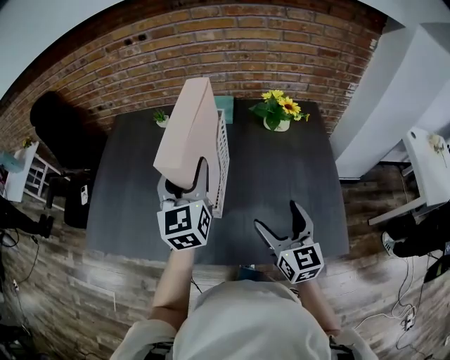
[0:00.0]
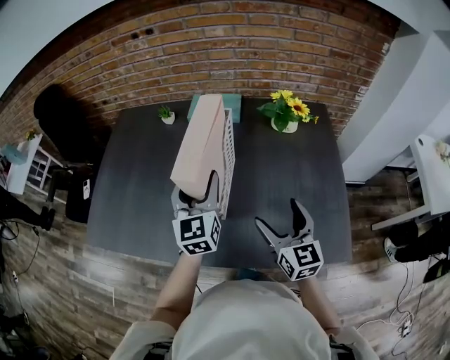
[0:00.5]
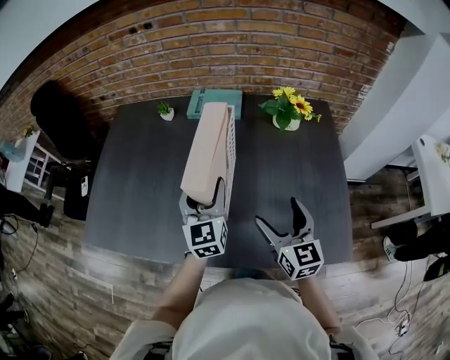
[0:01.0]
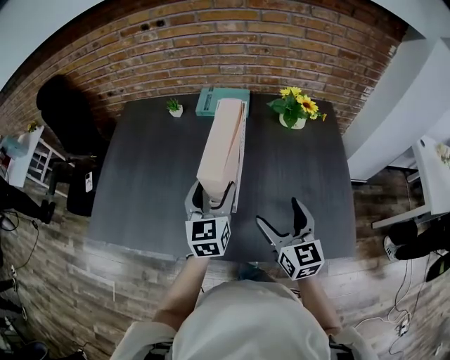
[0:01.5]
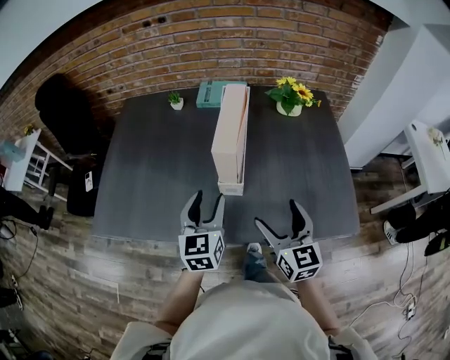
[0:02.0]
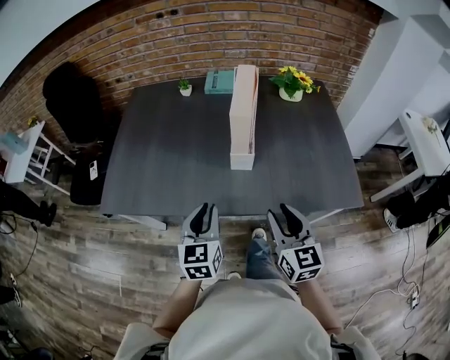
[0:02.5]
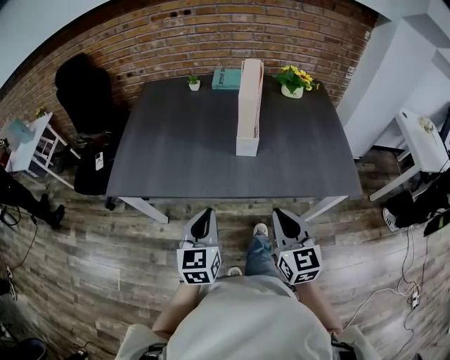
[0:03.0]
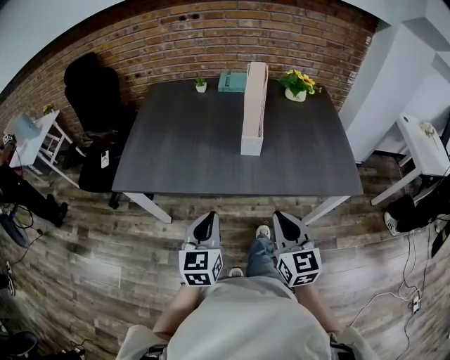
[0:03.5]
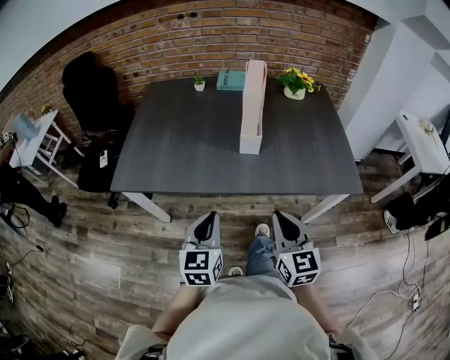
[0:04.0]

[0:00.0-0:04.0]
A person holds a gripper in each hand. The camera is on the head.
0:00.0 to 0:02.0: The right gripper heads to the left and backward, covering roughly 10 cm. The left gripper goes approximately 15 cm downward, backward and to the left.
0:02.0 to 0:04.0: Both grippers travel together backward, roughly 25 cm. The right gripper closes its fingers, while the left gripper closes.

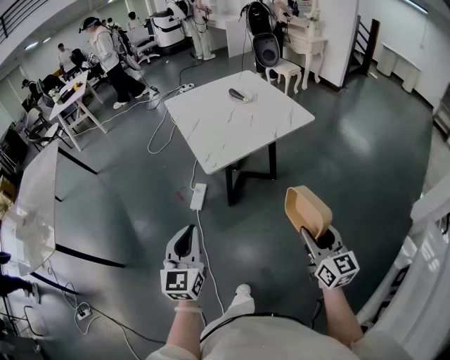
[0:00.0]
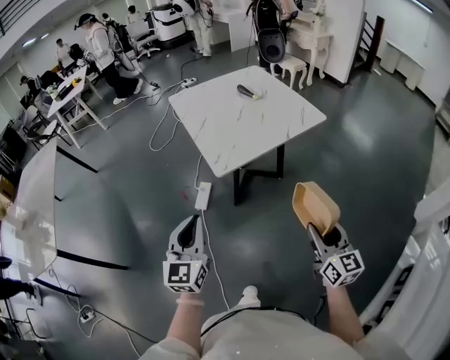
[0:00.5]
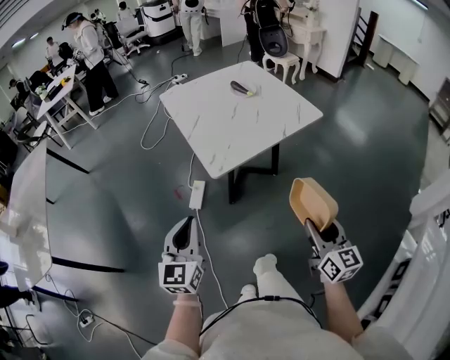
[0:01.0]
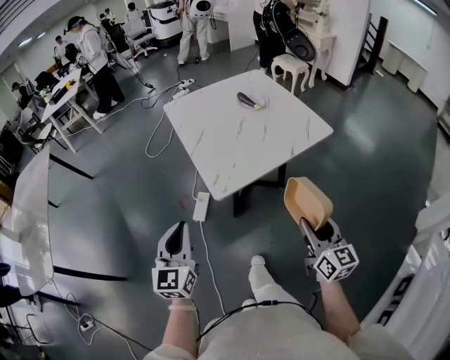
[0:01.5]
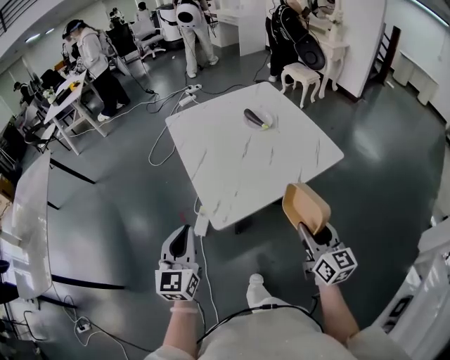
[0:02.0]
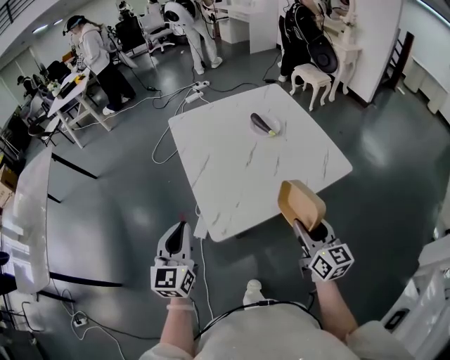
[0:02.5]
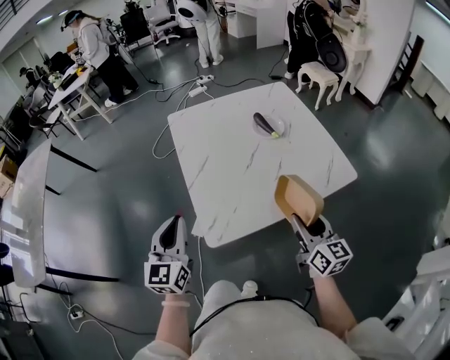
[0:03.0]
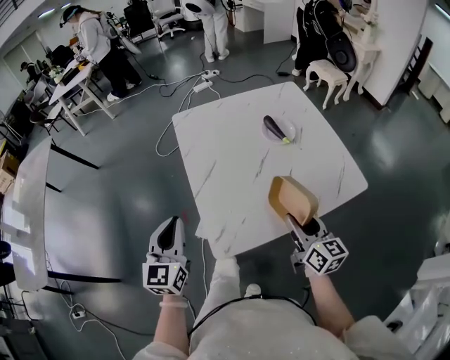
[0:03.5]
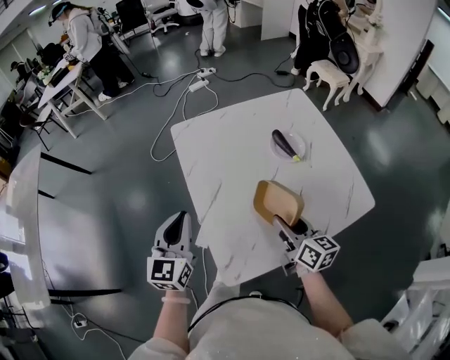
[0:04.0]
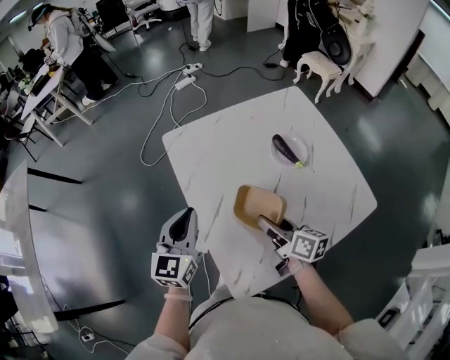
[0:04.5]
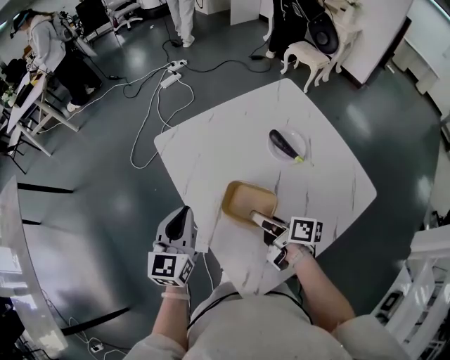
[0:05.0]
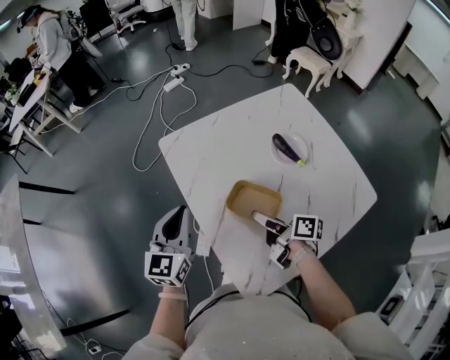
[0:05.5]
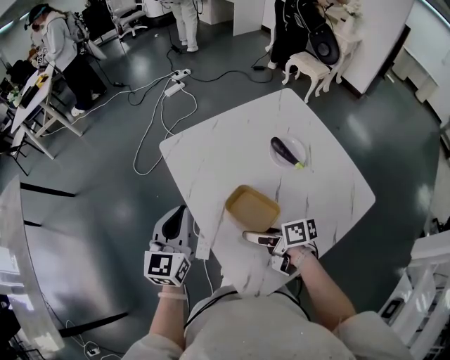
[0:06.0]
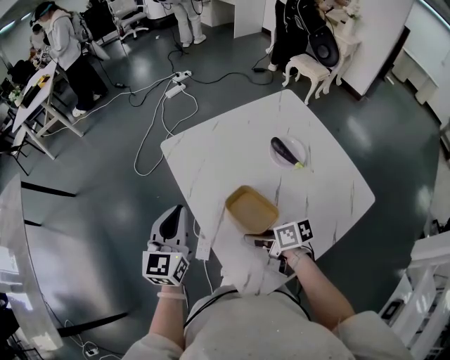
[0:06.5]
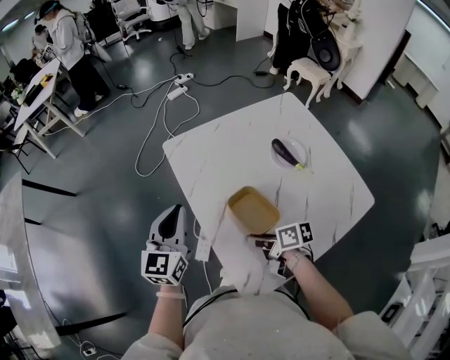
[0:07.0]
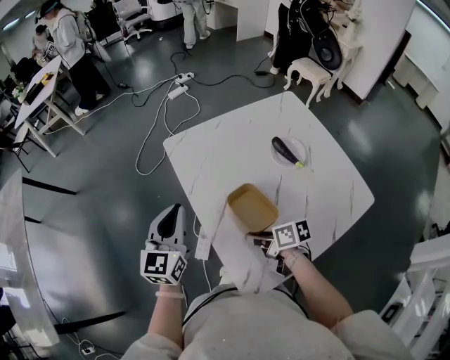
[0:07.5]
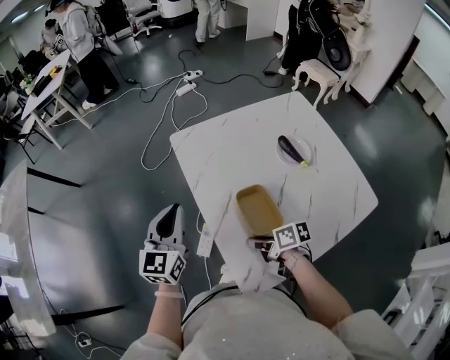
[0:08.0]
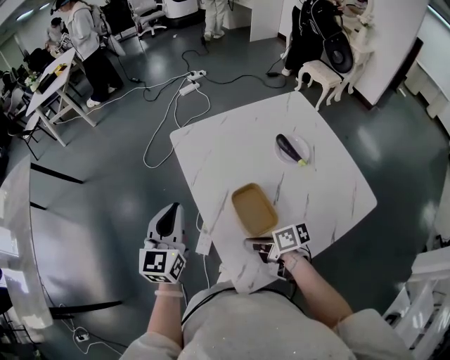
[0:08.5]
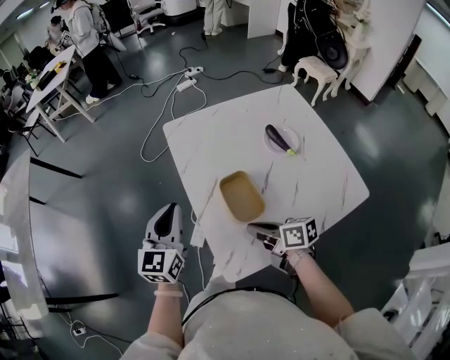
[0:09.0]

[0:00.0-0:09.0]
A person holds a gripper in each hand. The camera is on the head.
0:00.0 to 0:02.0: Both grippers move forward, roughly 25 cm.
0:02.0 to 0:04.5: The left gripper is displaced forward by about 30 cm; the right gripper moves forward and to the left, roughly 35 cm, and rotates approximately 40 degrees.
0:04.5 to 0:07.0: The right gripper moves downward and to the left, approximately 10 cm, rotates about 30 degrees, and opens, then closes once more.
0:07.0 to 0:09.0: The left gripper moves backward, about 10 cm; the right gripper shifts about 5 cm backward and upward.

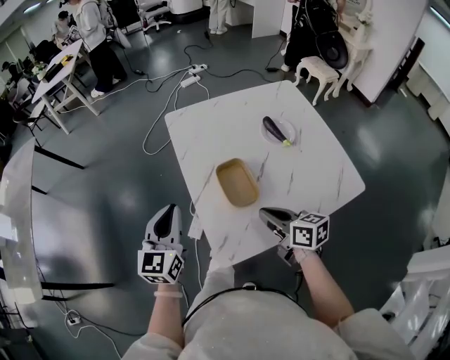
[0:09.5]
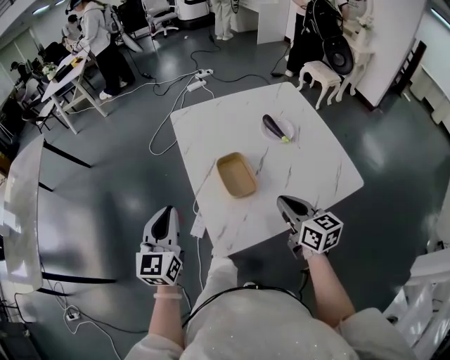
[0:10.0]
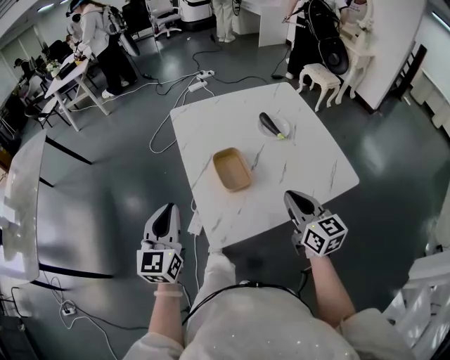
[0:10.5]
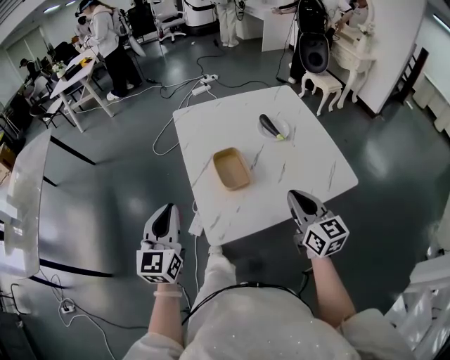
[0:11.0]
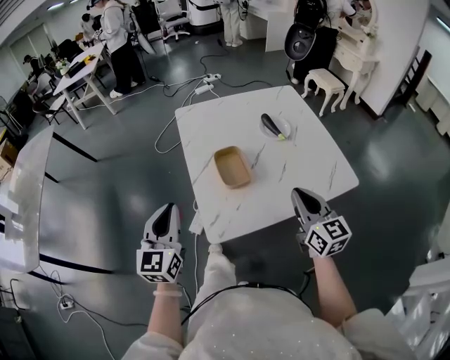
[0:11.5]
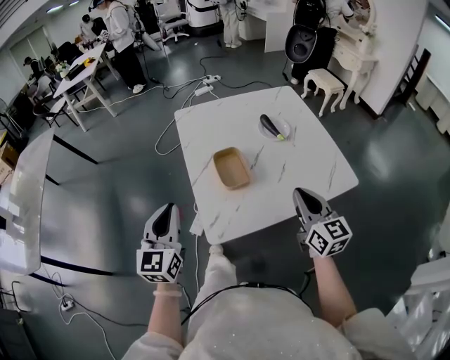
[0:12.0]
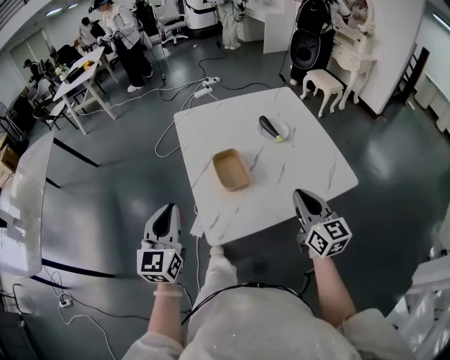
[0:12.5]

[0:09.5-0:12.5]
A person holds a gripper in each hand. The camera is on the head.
0:09.5 to 0:11.0: The right gripper travels to the right, upward and backward by some 15 cm, and rotates roughly 30 degrees, while the left gripper is displaced backward by some 10 cm.
0:11.0 to 0:12.5: The grippers move only a little.

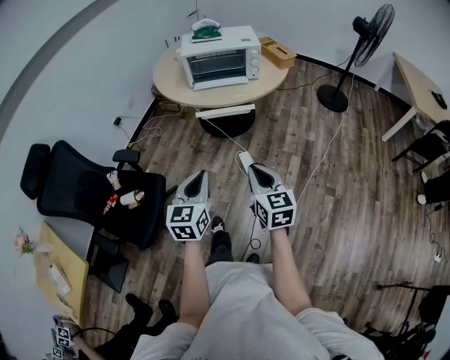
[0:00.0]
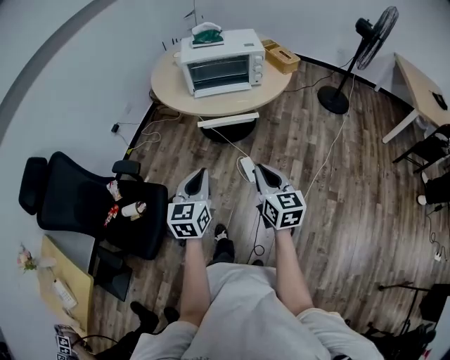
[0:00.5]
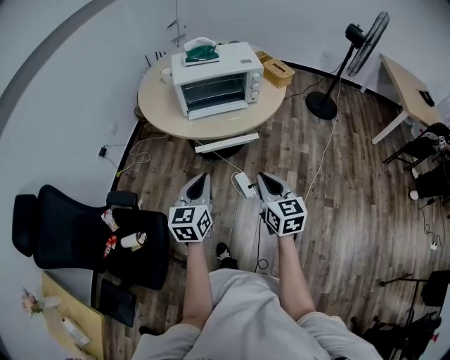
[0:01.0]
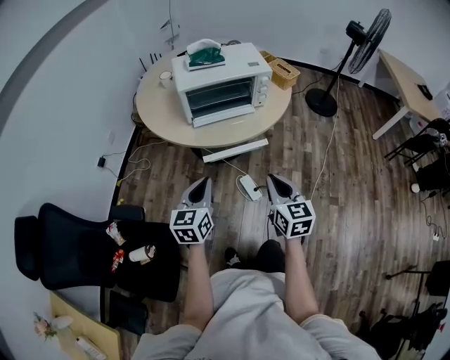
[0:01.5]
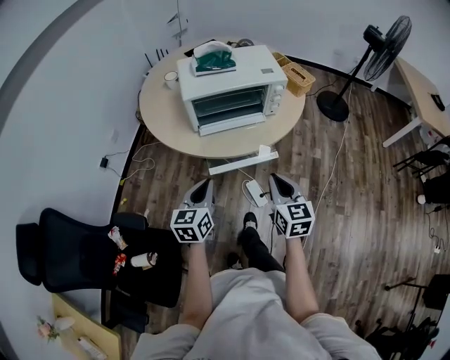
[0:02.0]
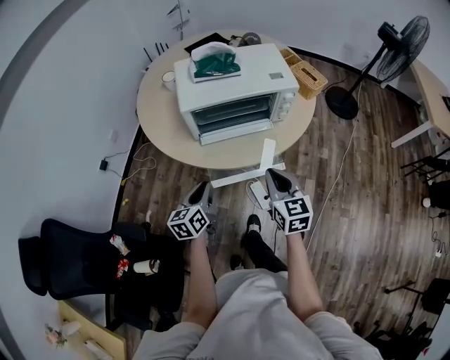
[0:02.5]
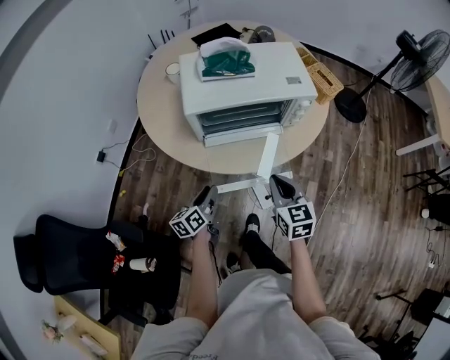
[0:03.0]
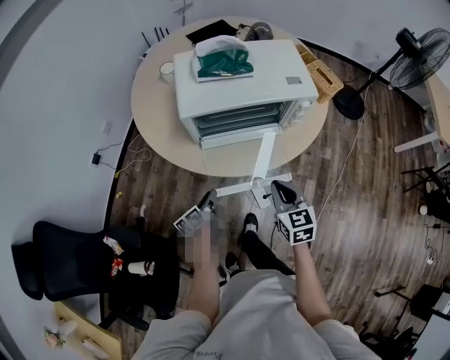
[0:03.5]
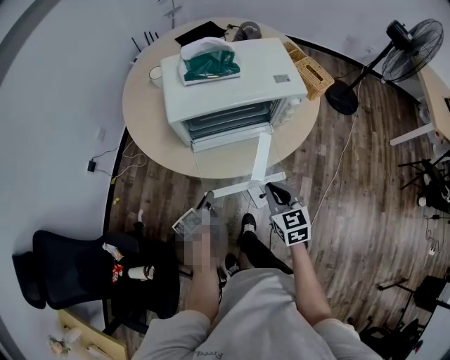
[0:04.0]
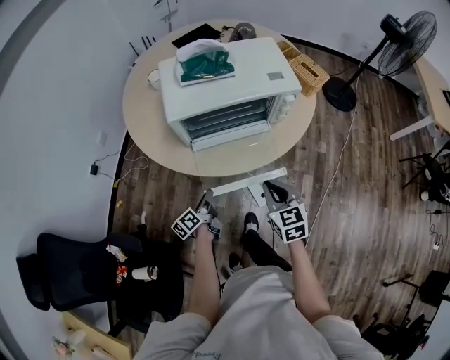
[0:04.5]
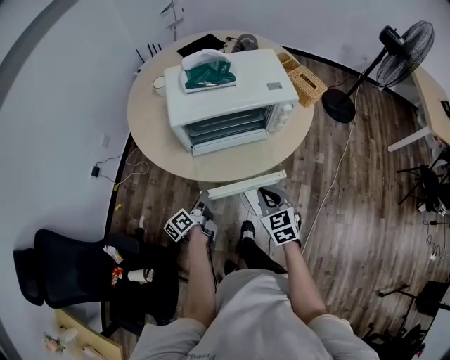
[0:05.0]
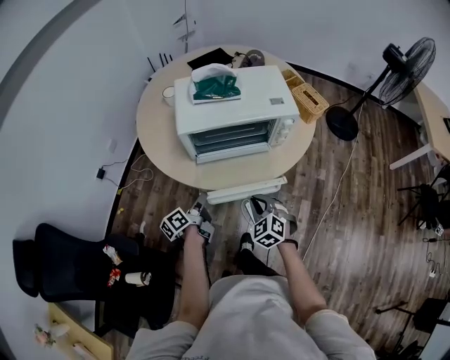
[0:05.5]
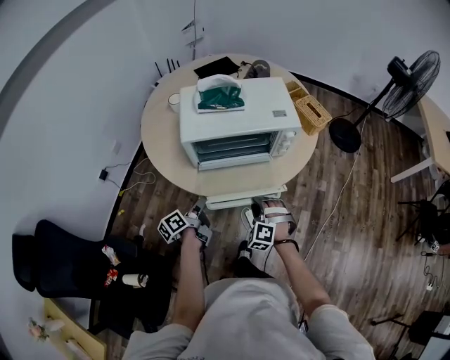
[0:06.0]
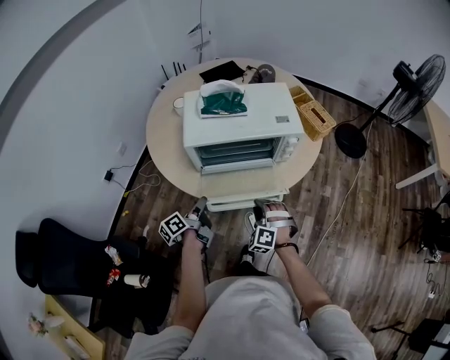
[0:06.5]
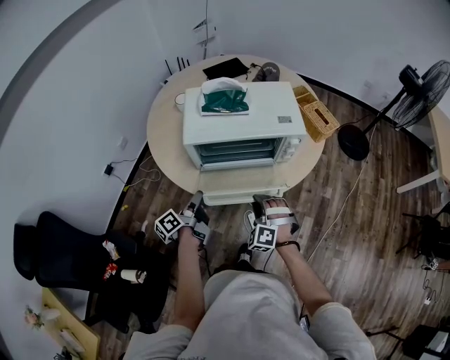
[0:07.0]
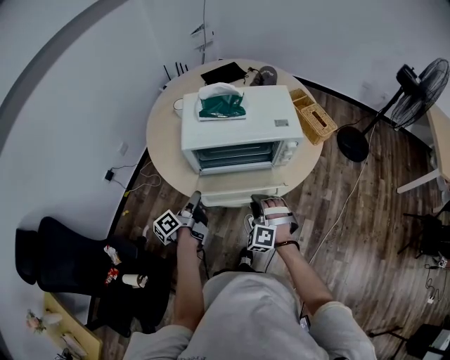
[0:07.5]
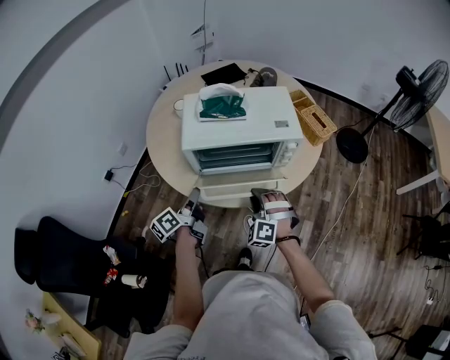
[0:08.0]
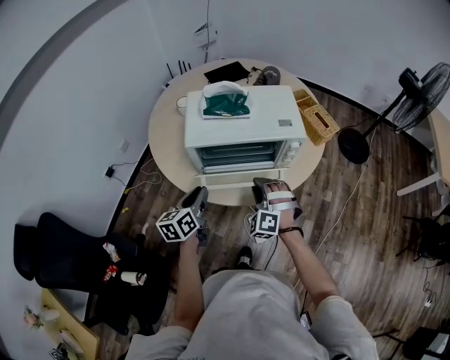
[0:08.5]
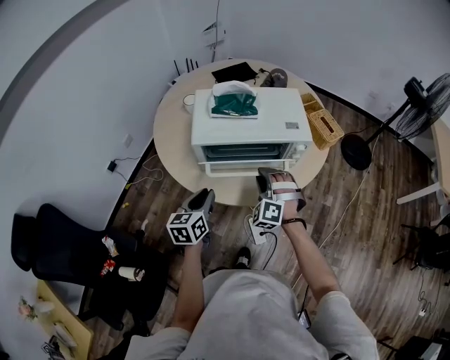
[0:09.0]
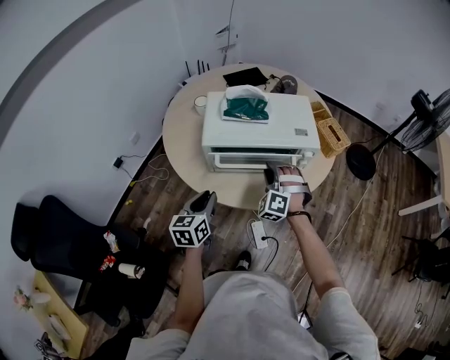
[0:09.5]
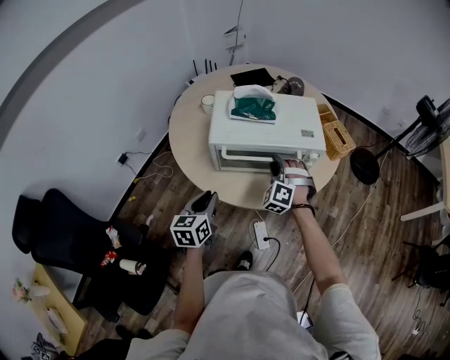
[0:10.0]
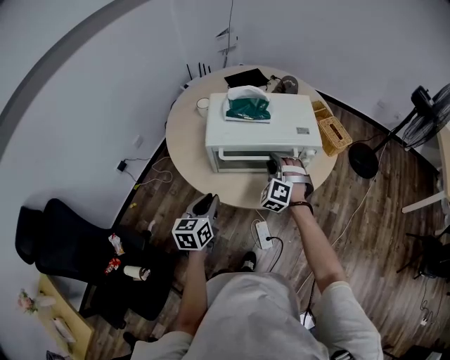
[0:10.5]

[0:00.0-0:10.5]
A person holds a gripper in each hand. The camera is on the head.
0:00.0 to 0:02.0: Both grippers move forward, some 30 cm.
0:02.0 to 0:04.0: The left gripper shifts roughly 30 cm downward and forward, rolls counterclockwise, seen from behind, by approximately 50 degrees, and opens; the right gripper heads forward and downward, covering some 15 cm.
0:04.0 to 0:06.5: The right gripper shifts about 5 cm downward, rolls counterclockwise, seen from behind, by roughly 70 degrees, and opens, while the left gripper heads upward, covering roughly 15 cm.
0:06.5 to 0:08.5: The left gripper shifts approximately 10 cm upward, and rolls clockwise, seen from behind, by approximately 40 degrees, while the right gripper is displaced upward and forward by roughly 10 cm.
0:08.5 to 0:10.5: The right gripper shifts approximately 10 cm forward.
